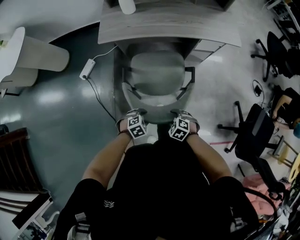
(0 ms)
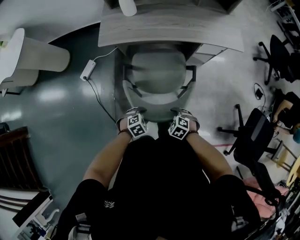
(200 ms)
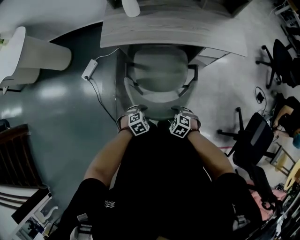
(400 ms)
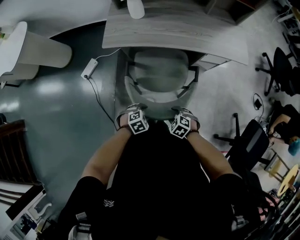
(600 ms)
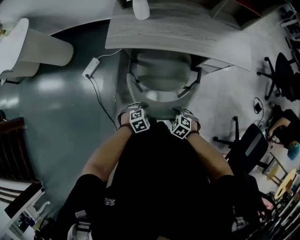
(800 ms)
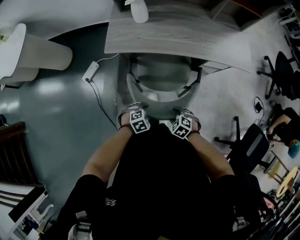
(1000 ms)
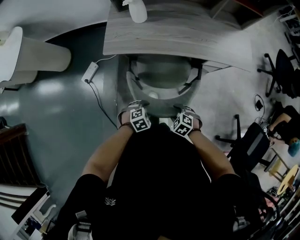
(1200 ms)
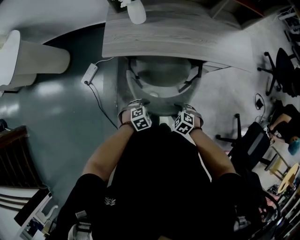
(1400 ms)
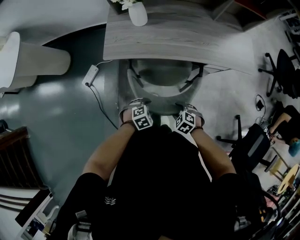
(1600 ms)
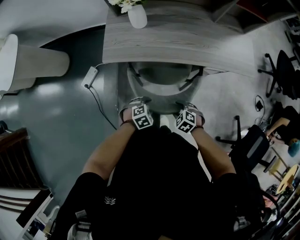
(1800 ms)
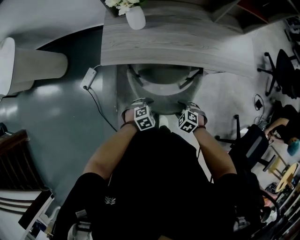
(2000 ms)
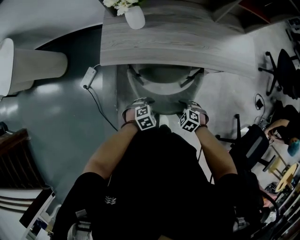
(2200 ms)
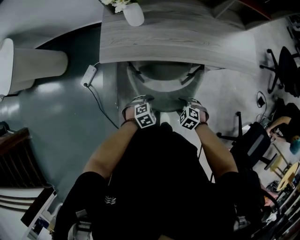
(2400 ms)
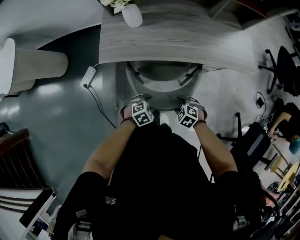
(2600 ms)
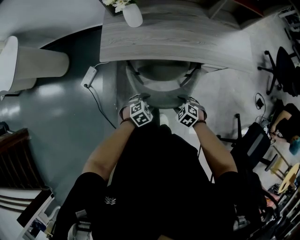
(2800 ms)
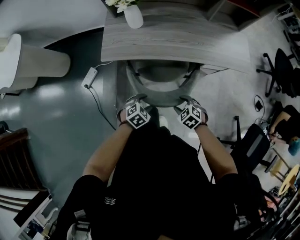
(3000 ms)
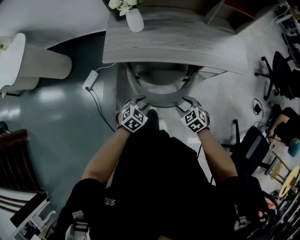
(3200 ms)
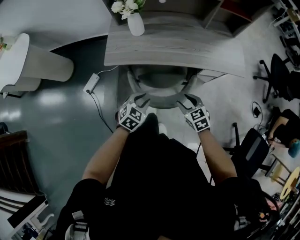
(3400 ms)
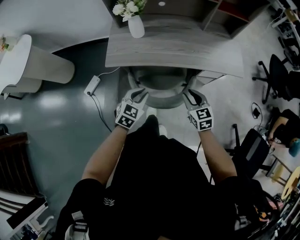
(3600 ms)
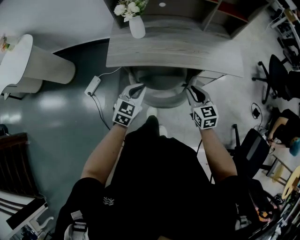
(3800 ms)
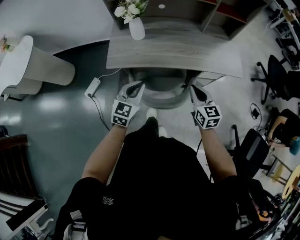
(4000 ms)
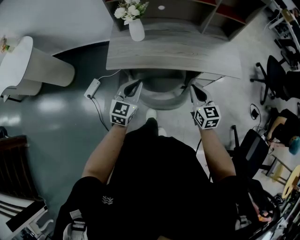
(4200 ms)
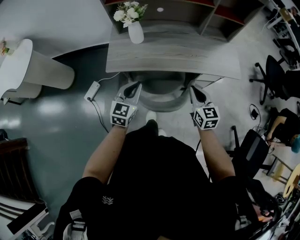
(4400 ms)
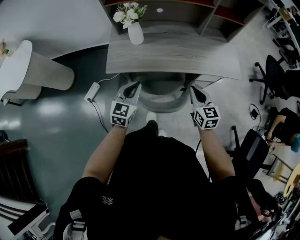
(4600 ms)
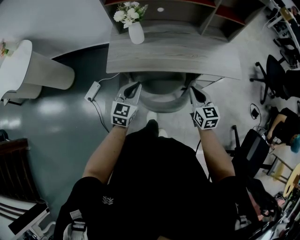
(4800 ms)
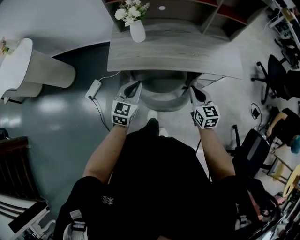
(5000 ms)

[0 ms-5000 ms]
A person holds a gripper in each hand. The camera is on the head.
0 ms to 1600 ms: The left gripper ends up some 25 cm from where it was. The right gripper ends up approximately 25 cm from where it was.
1600 ms to 3400 ms: Both grippers travel together upward, about 15 cm. The right gripper rotates some 40 degrees. Meanwhile the left gripper rotates about 30 degrees.
3400 ms to 5000 ms: The right gripper travels upward and forward by some 10 cm, swivels about 30 degrees, and closes up. The left gripper heads upward, forward and to the left, covering about 15 cm, turns by about 30 degrees, and closes its fingers.

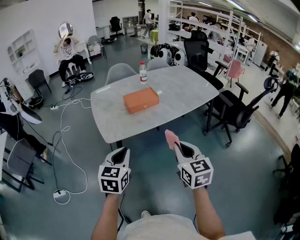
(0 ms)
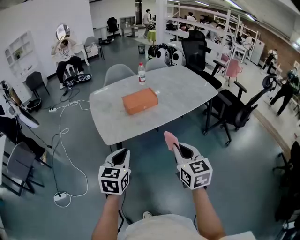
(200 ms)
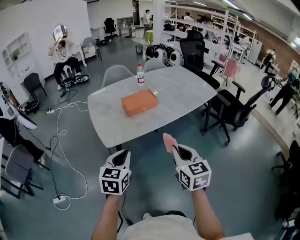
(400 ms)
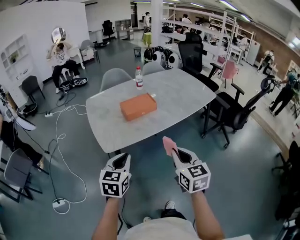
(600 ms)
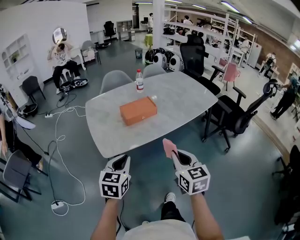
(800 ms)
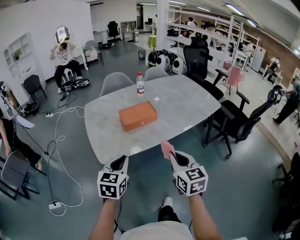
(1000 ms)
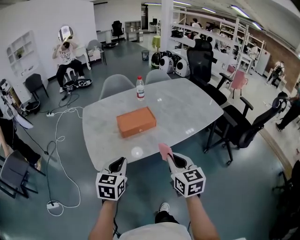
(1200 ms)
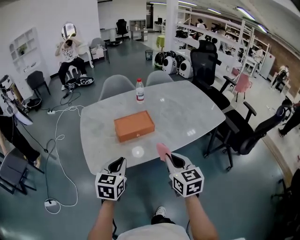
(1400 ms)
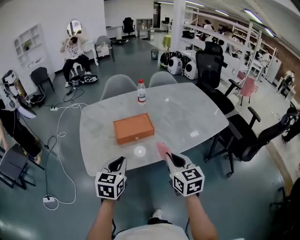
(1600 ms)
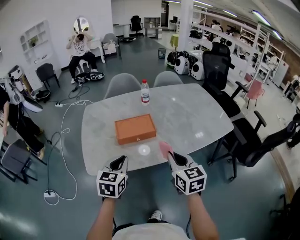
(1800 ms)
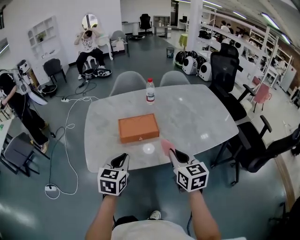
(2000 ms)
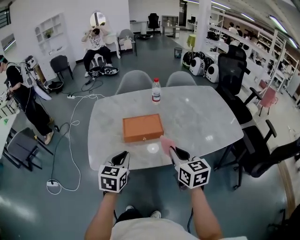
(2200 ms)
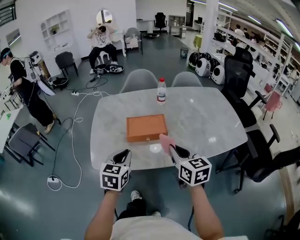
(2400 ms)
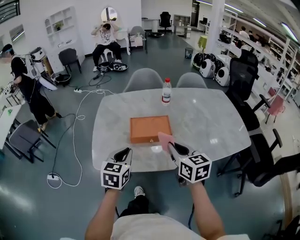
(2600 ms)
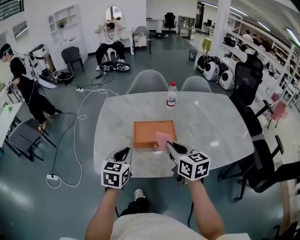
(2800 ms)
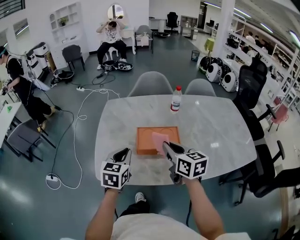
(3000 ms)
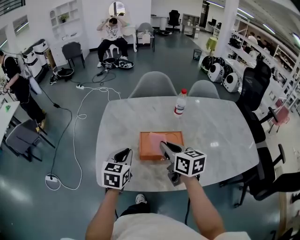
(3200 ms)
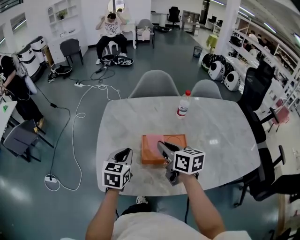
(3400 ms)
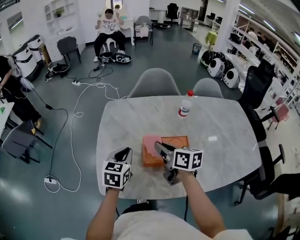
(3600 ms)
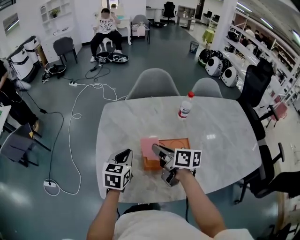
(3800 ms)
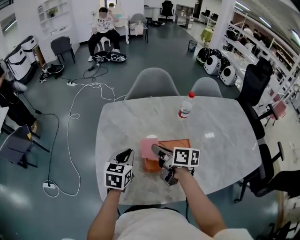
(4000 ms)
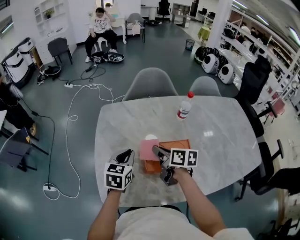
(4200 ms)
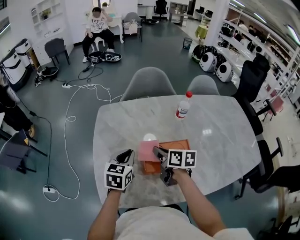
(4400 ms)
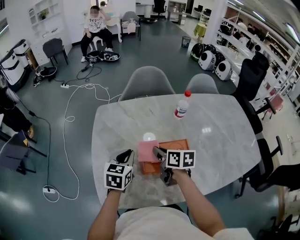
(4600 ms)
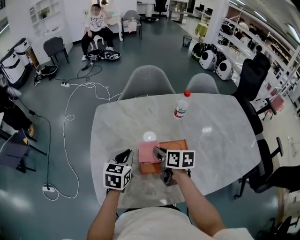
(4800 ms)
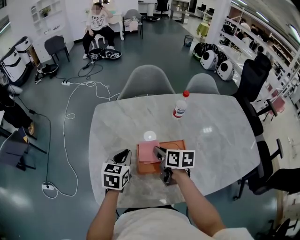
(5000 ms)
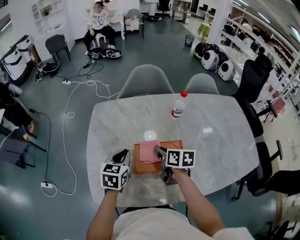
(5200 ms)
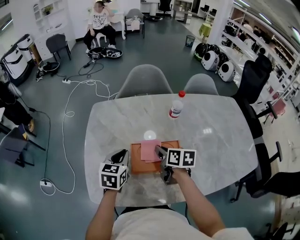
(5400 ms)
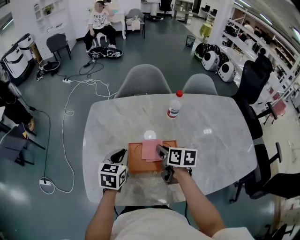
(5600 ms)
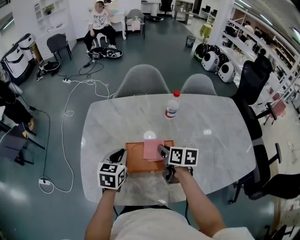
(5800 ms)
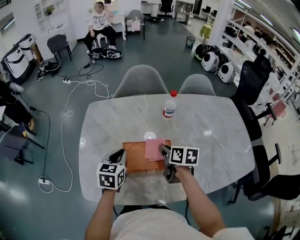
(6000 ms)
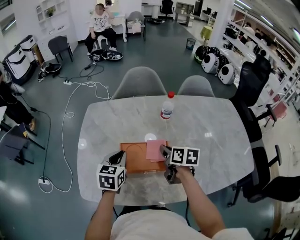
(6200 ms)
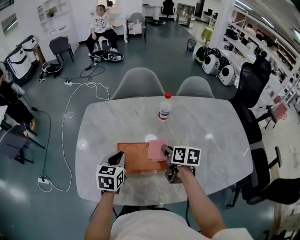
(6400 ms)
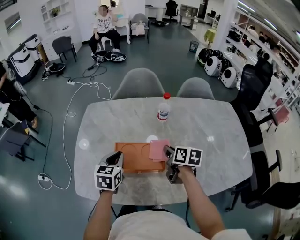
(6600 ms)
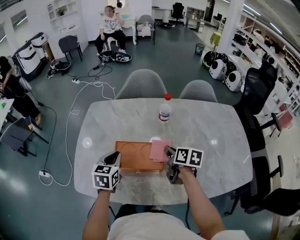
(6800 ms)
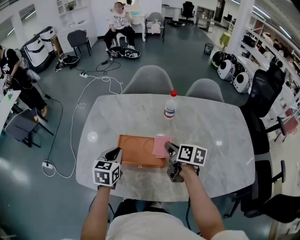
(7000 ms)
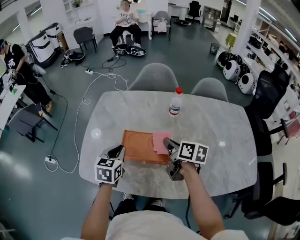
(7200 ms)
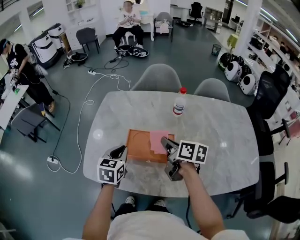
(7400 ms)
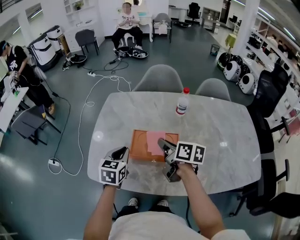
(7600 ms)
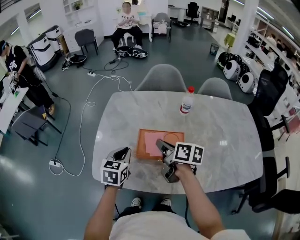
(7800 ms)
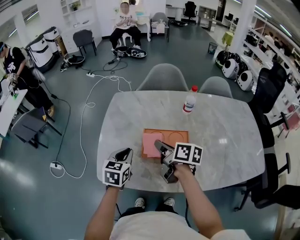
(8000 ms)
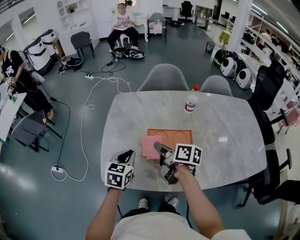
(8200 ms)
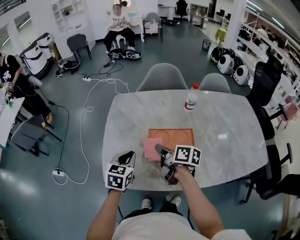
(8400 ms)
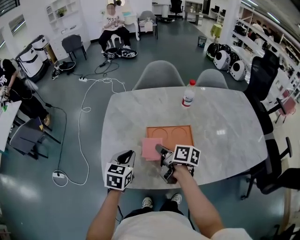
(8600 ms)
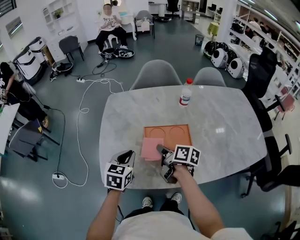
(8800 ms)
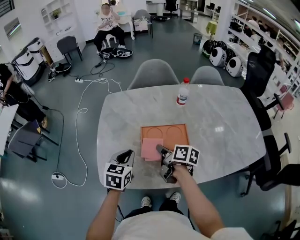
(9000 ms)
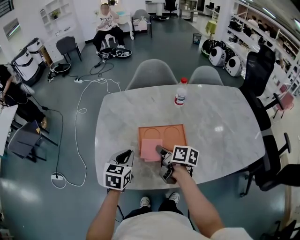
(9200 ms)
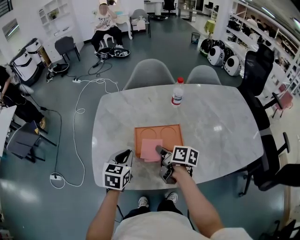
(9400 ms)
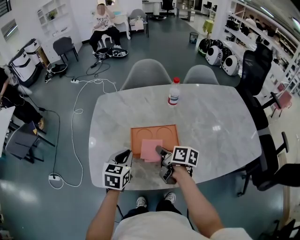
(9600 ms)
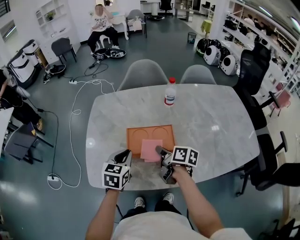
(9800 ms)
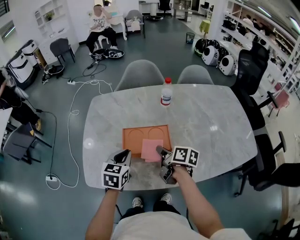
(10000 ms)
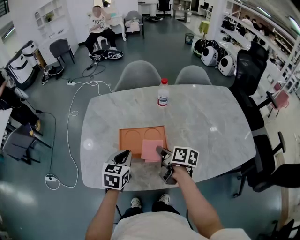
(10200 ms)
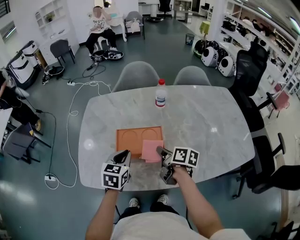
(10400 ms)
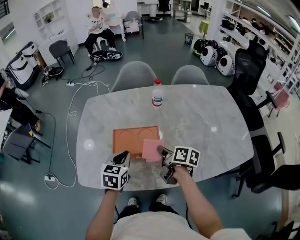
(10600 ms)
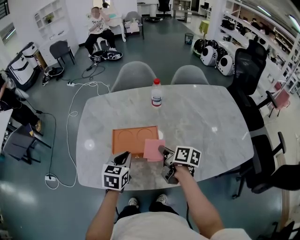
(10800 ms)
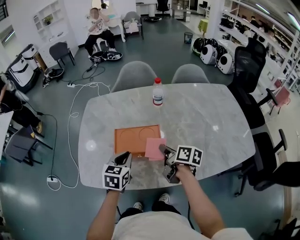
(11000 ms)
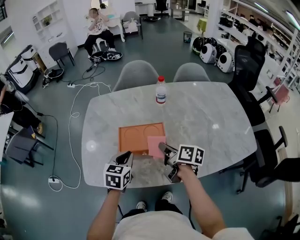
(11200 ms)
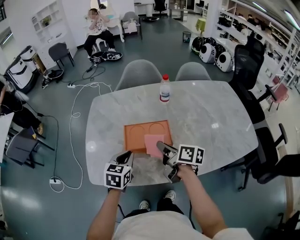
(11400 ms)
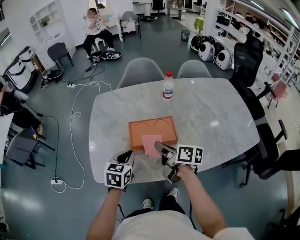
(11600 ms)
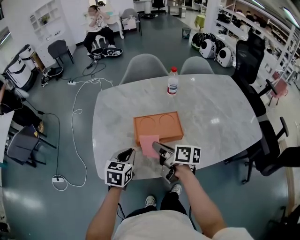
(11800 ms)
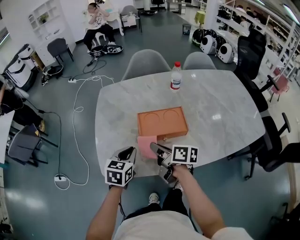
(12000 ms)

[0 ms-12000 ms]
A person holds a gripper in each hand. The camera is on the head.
0 ms to 1600 ms: Both grippers move forward, approximately 25 cm.
1600 ms to 3000 ms: Both grippers travel together forward, approximately 20 cm. The right gripper changes its angle by roughly 30 degrees.
3000 ms to 4400 ms: The left gripper travels forward by approximately 15 cm, while the right gripper travels forward and downward by some 20 cm, and rotates roughly 30 degrees.
4400 ms to 6000 ms: The left gripper moves to the right, approximately 5 cm, while the right gripper heads to the right, covering roughly 15 cm.
6000 ms to 7600 ms: The left gripper moves backward, about 5 cm; the right gripper moves upward and to the left, about 10 cm.
7600 ms to 9000 ms: The right gripper is displaced downward and to the left by roughly 10 cm.
9000 ms to 10400 ms: Both grippers travel together to the right, some 10 cm.
10400 ms to 12000 ms: The left gripper shifts about 10 cm to the left, while the right gripper heads to the left, covering about 15 cm.

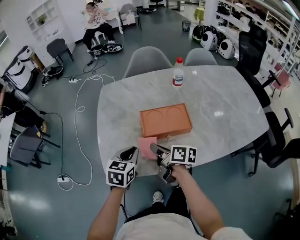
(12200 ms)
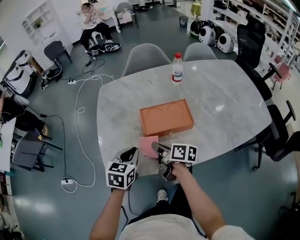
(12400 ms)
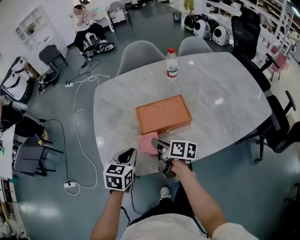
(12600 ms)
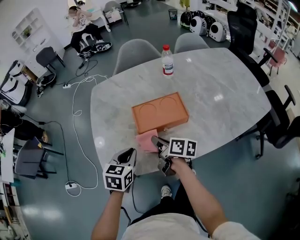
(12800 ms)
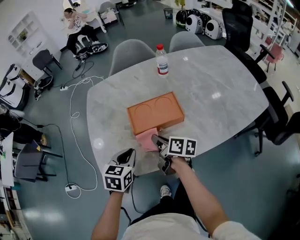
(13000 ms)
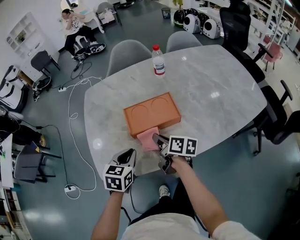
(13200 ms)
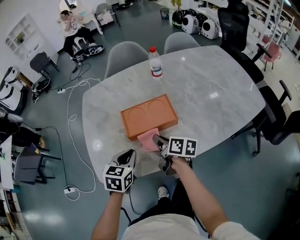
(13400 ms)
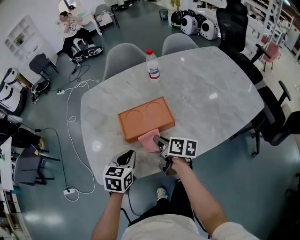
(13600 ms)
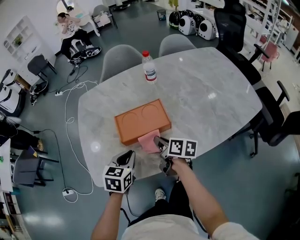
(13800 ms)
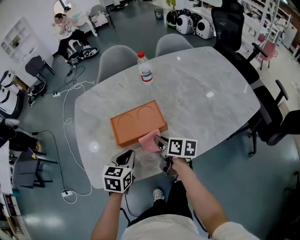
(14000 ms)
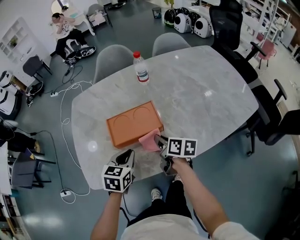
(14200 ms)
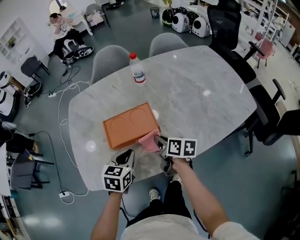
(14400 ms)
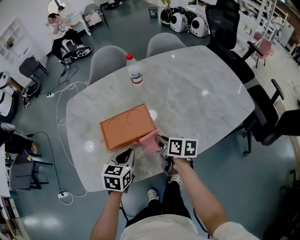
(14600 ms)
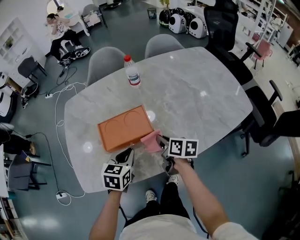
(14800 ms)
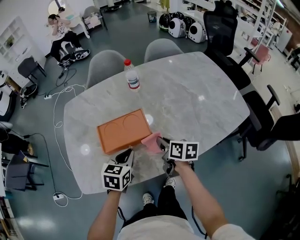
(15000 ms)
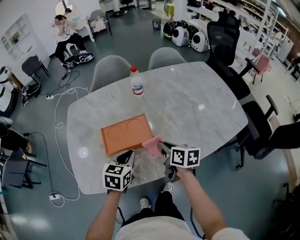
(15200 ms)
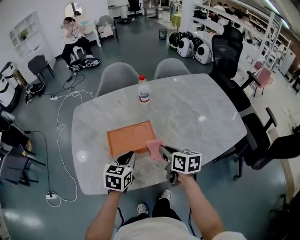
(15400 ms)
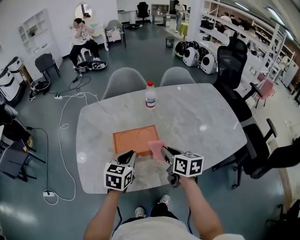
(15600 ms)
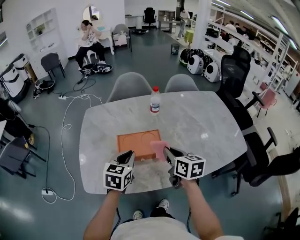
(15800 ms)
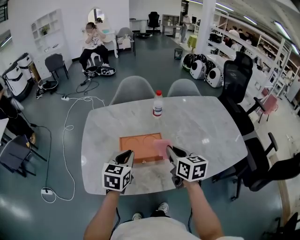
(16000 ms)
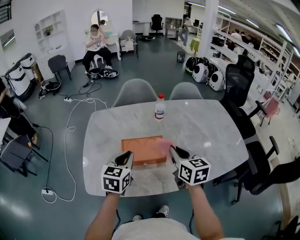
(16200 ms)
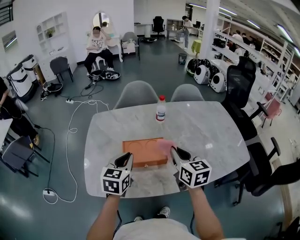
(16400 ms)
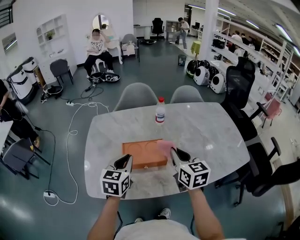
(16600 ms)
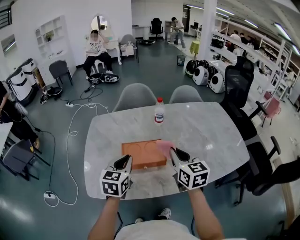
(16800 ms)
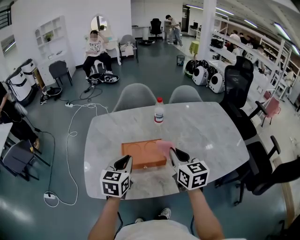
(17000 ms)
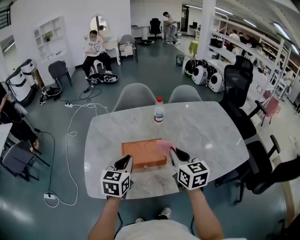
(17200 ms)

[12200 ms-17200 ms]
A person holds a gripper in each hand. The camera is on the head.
12200 ms to 13800 ms: The right gripper is displaced to the right by about 10 cm; the left gripper heads to the right, covering some 10 cm.
13800 ms to 15600 ms: The two grippers go some 10 cm upward and to the right. The right gripper changes its angle by some 30 degrees.
15600 ms to 17200 ms: The left gripper is displaced upward by about 5 cm. The right gripper heads upward, covering about 10 cm, and turns by approximately 20 degrees.

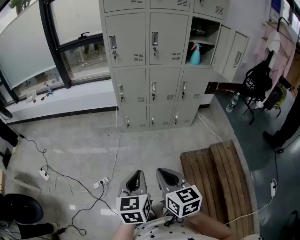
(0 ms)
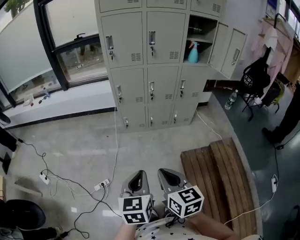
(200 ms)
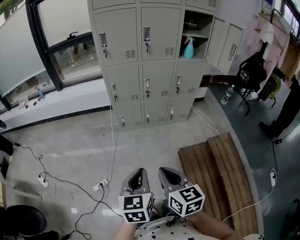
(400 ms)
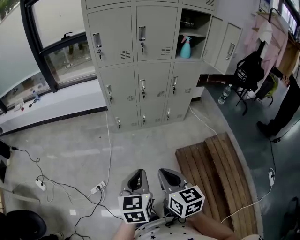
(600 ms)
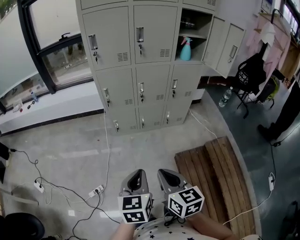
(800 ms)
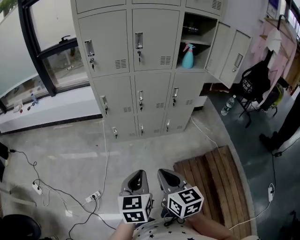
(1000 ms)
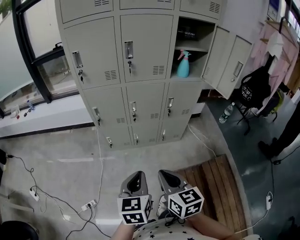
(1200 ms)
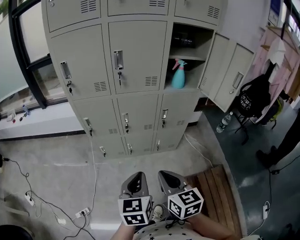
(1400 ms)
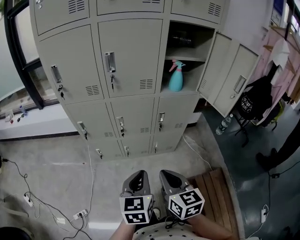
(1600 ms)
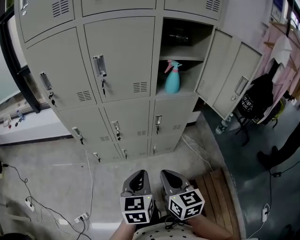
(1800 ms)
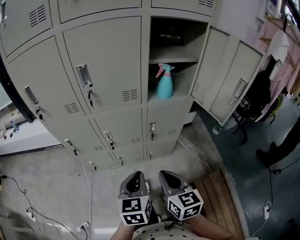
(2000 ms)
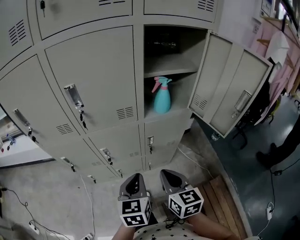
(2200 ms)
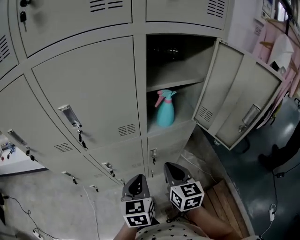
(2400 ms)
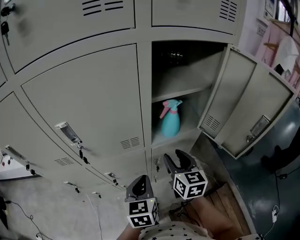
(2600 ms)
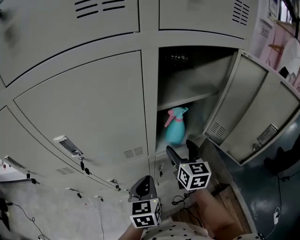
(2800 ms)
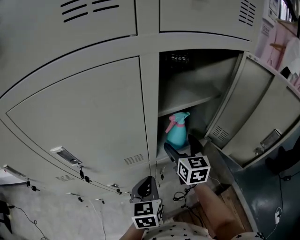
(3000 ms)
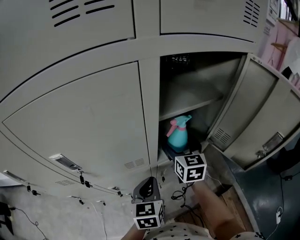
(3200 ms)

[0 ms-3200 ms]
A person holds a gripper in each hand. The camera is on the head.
0 ms to 1600 ms: The pair of grippers is taken forward and to the right, some 40 cm.
1600 ms to 3200 ms: Both grippers move forward, approximately 50 cm. The right gripper rotates about 20 degrees, and opens its fingers.
